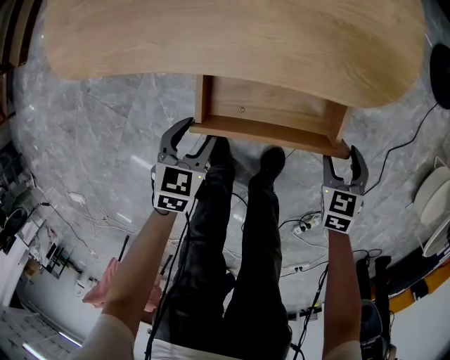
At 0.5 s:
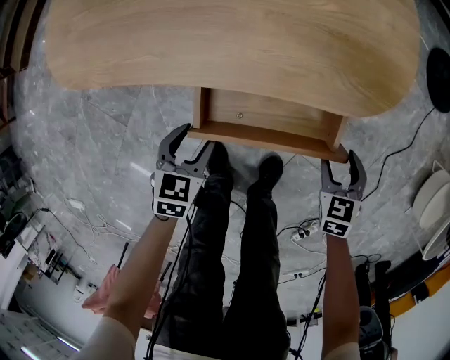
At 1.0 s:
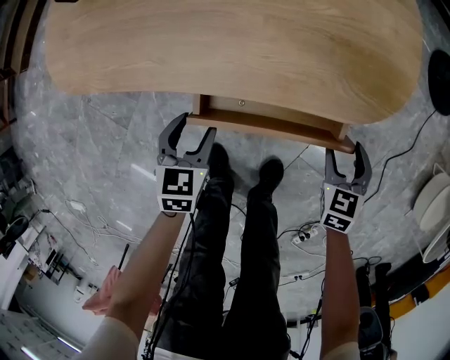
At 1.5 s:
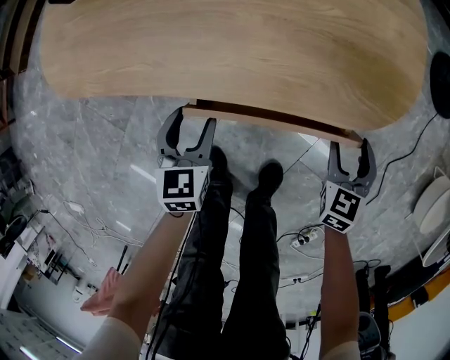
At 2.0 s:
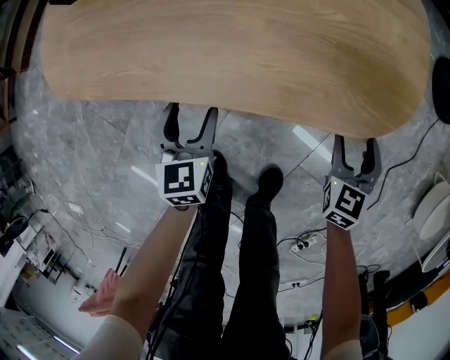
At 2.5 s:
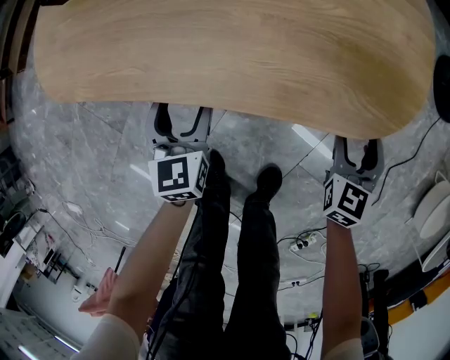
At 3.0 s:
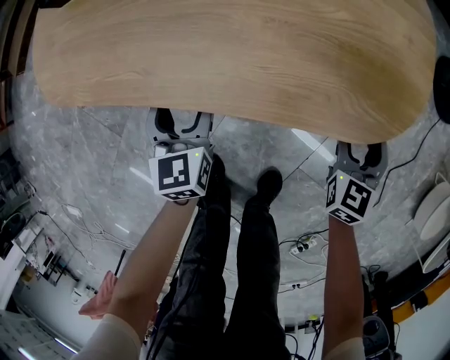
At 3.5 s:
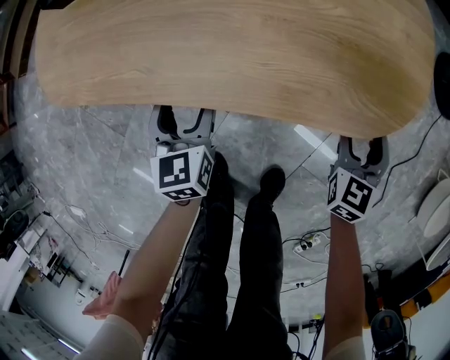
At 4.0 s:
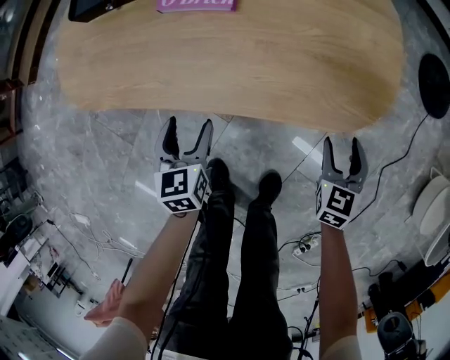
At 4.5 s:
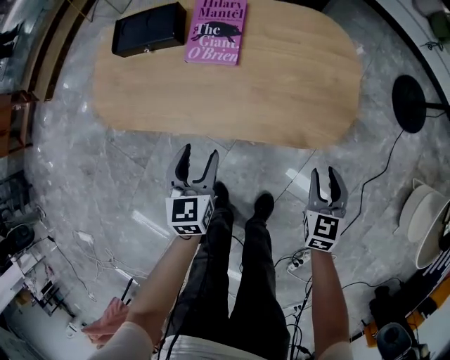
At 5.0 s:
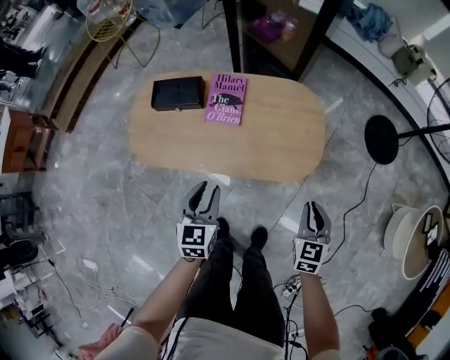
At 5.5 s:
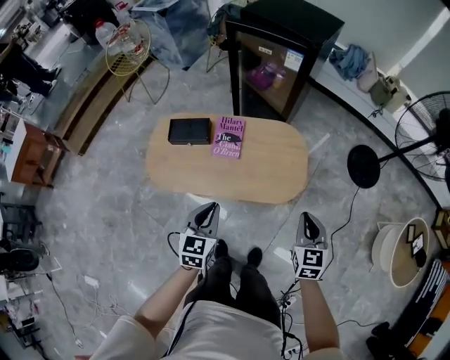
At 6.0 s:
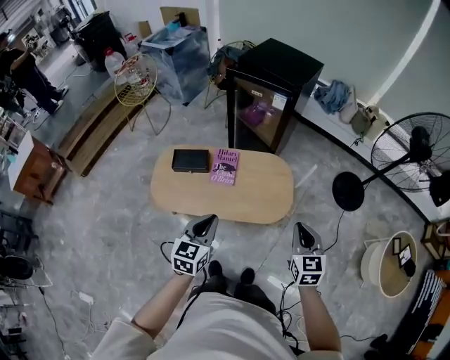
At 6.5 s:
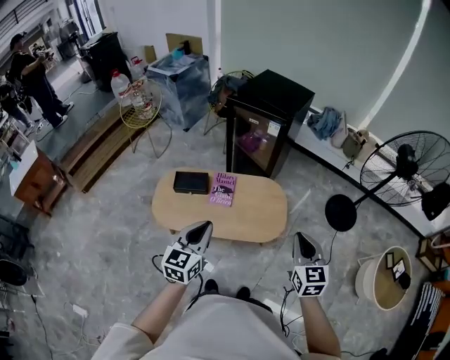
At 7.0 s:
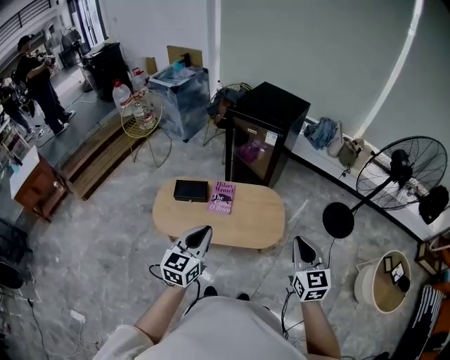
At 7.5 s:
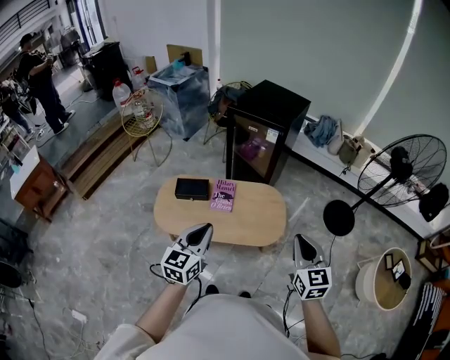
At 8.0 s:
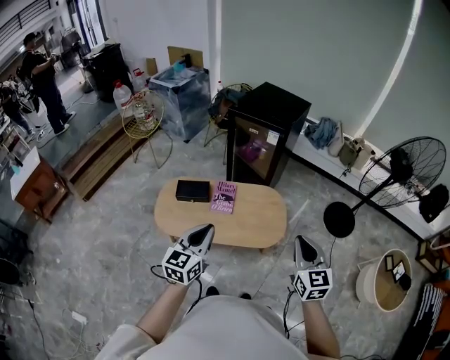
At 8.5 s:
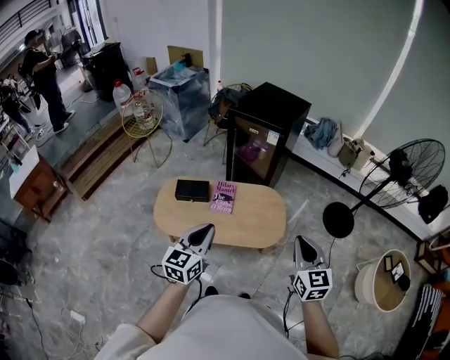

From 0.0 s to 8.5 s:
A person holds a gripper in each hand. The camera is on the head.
From 0.0 s to 2.0 s: Both grippers travel together forward, roughly 10 cm. The left gripper turns by some 30 degrees; the right gripper swivels about 20 degrees.
From 2.0 s to 4.0 s: There are only small adjustments of the grippers.
From 4.0 s to 6.5 s: The grippers both shift upward by some 70 cm. The left gripper turns by about 40 degrees, and closes its fingers, while the right gripper turns by roughly 30 degrees, and closes up.
From 6.5 s to 8.5 s: The right gripper moves some 5 cm.

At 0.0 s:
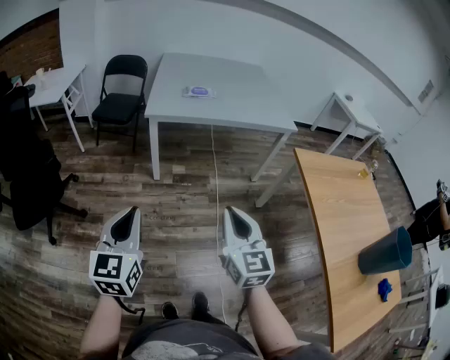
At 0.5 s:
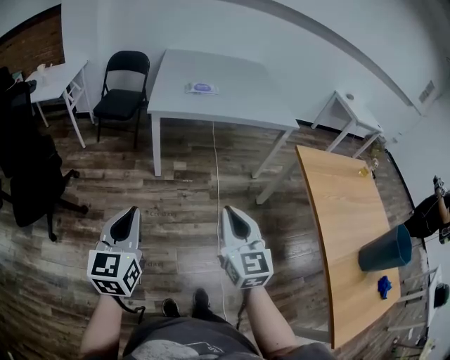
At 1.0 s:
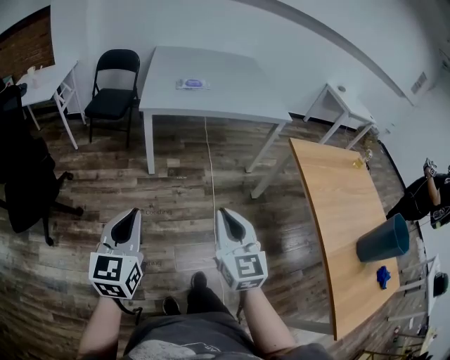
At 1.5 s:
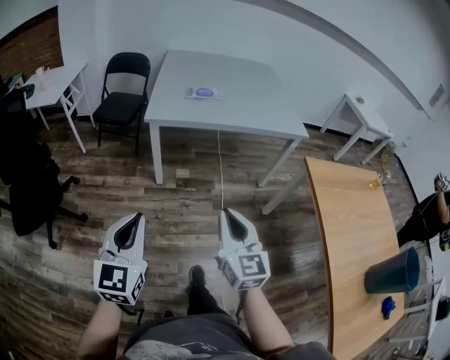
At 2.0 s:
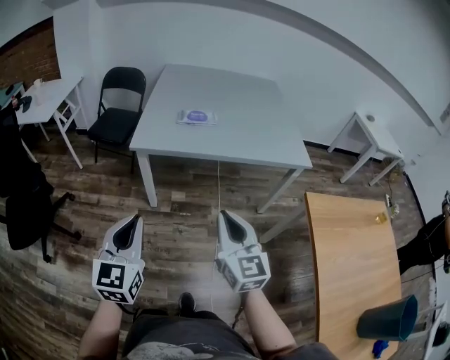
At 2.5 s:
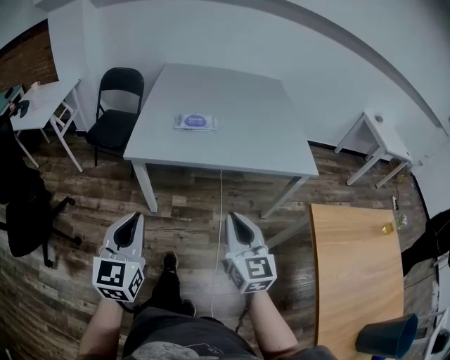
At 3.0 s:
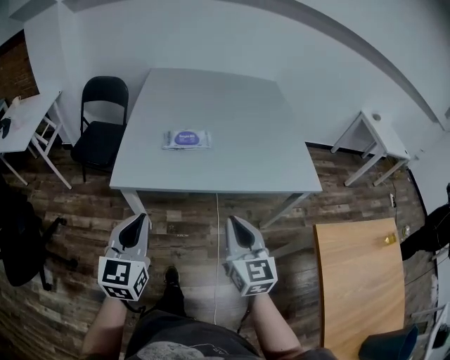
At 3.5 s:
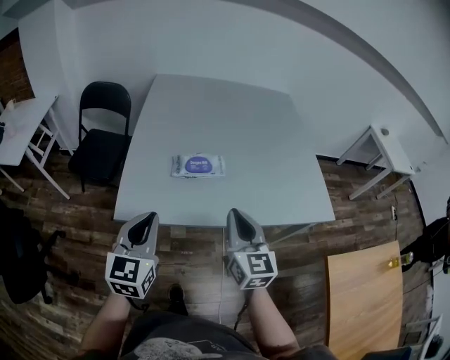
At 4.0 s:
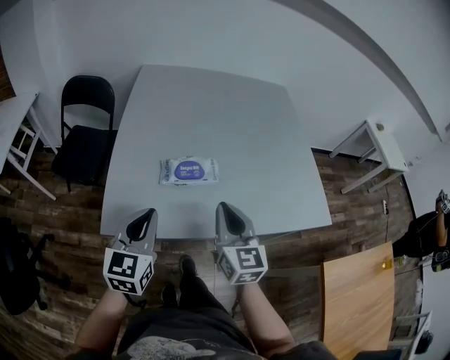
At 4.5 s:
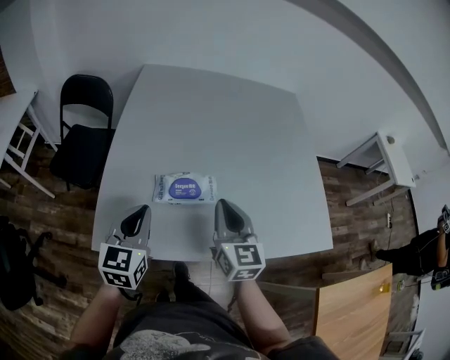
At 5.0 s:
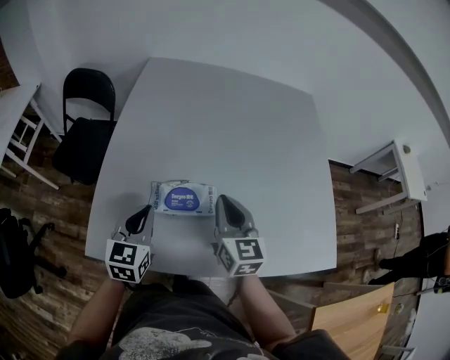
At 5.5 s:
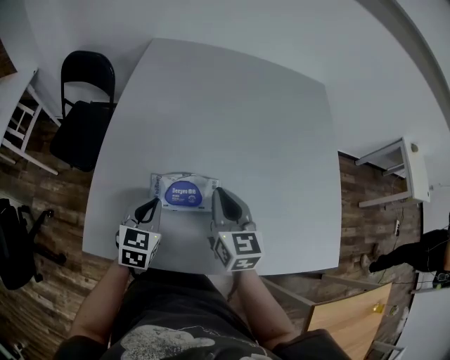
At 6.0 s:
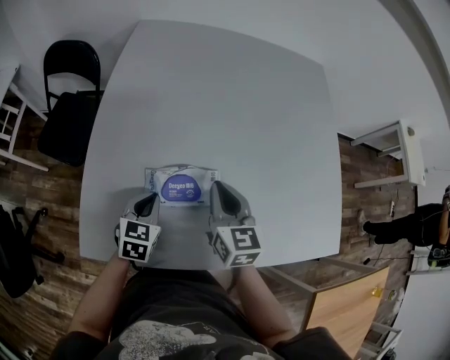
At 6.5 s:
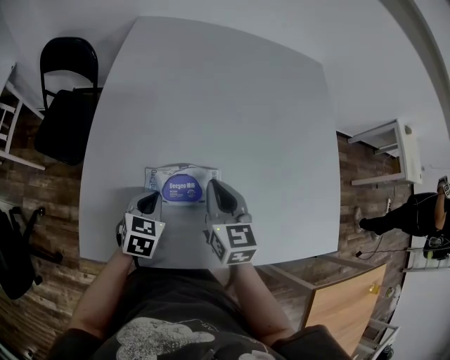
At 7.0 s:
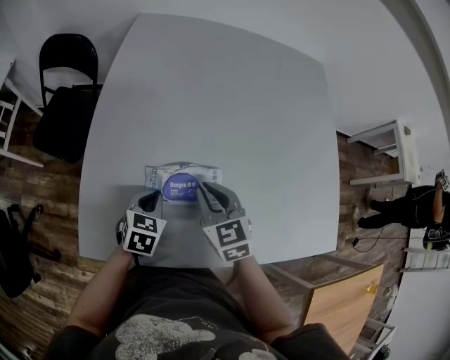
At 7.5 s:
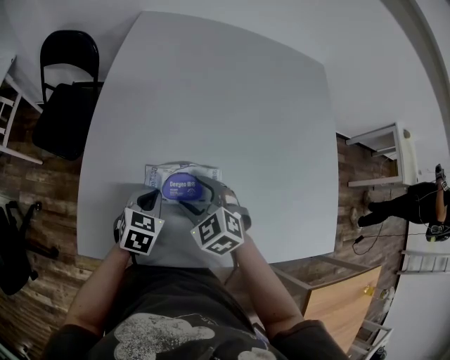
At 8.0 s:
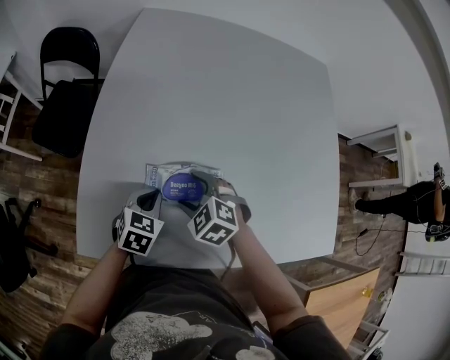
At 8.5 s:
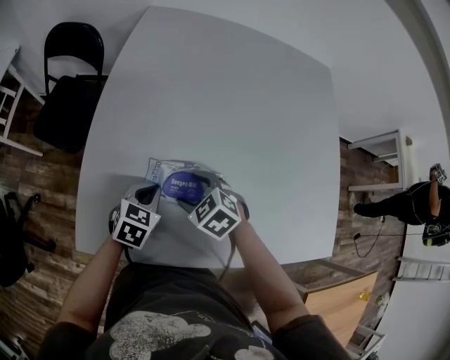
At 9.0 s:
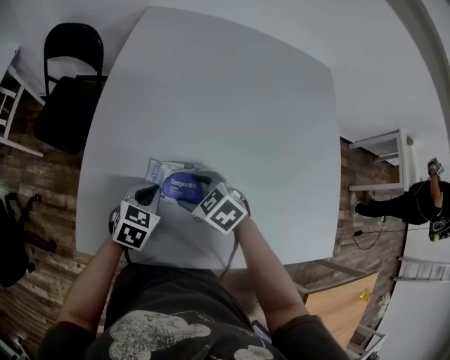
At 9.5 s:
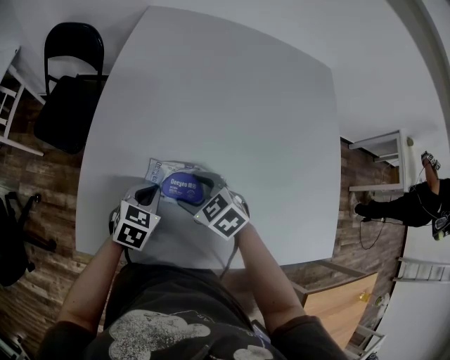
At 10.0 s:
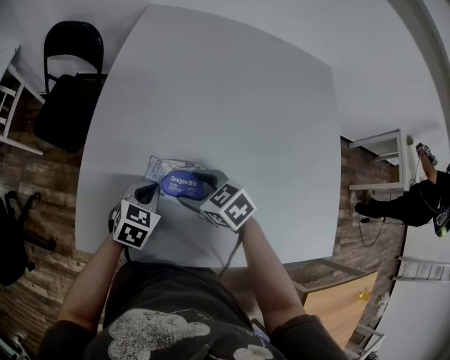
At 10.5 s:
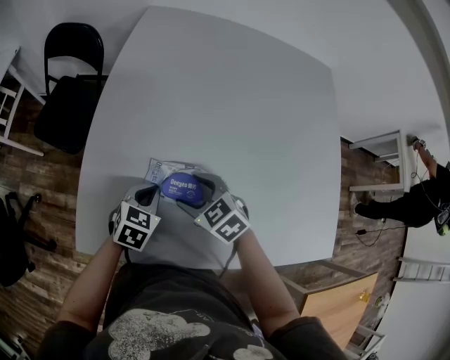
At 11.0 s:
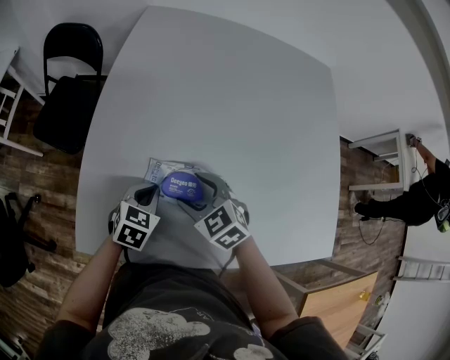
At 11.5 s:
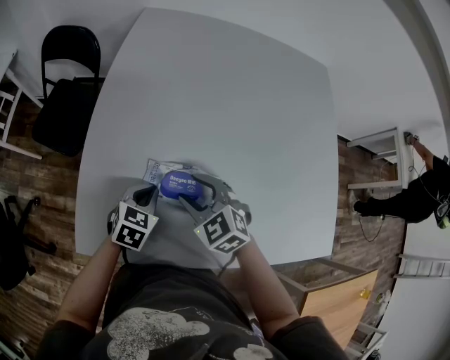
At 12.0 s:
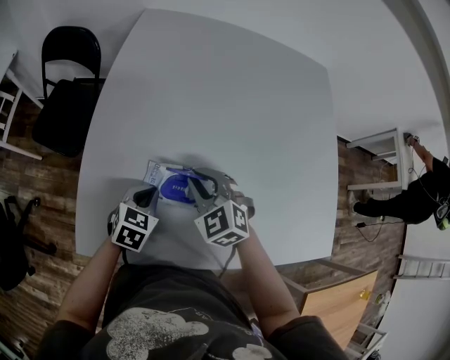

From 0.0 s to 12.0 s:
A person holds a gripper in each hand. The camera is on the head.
From 0.0 s to 2.0 s: Both grippers travel together forward, approximately 20 cm.
From 2.0 s to 4.0 s: Both grippers are carried forward, about 40 cm.
From 4.0 s to 6.0 s: The right gripper goes approximately 20 cm forward and downward. Meanwhile the left gripper heads downward and forward, covering roughly 25 cm, and swivels some 30 degrees.
From 6.0 s to 8.0 s: The right gripper travels downward and to the left by about 15 cm, tilts its fingers roughly 40 degrees downward, and opens.
From 8.0 s to 10.0 s: The right gripper changes its angle by about 30 degrees.
From 10.0 s to 12.0 s: The right gripper ends up about 5 cm from where it was, rotates about 40 degrees, and closes up.

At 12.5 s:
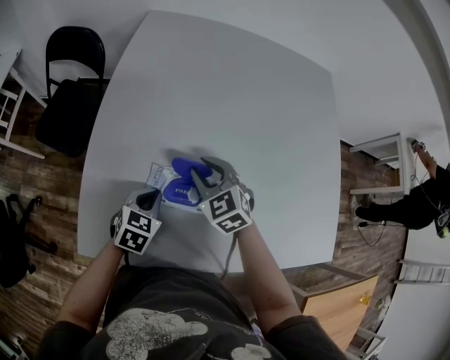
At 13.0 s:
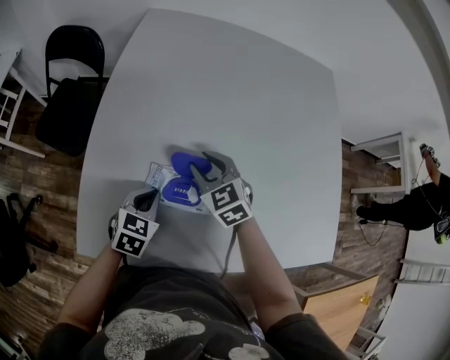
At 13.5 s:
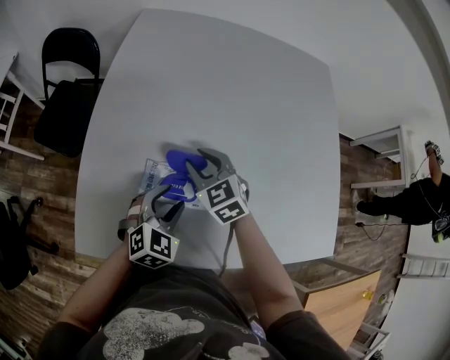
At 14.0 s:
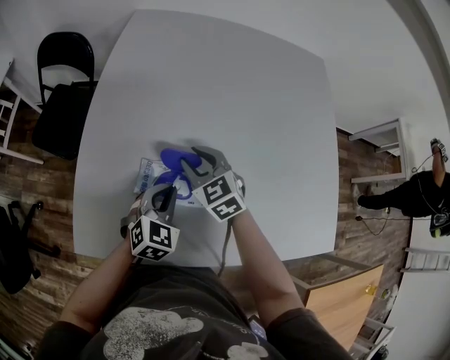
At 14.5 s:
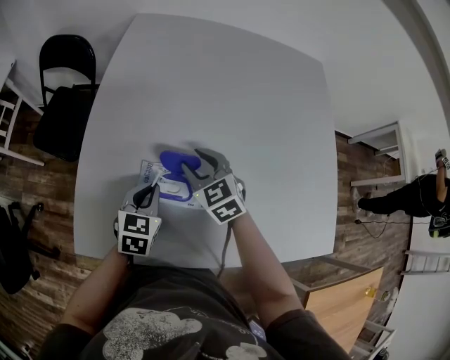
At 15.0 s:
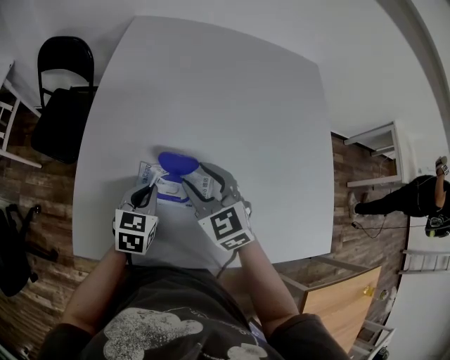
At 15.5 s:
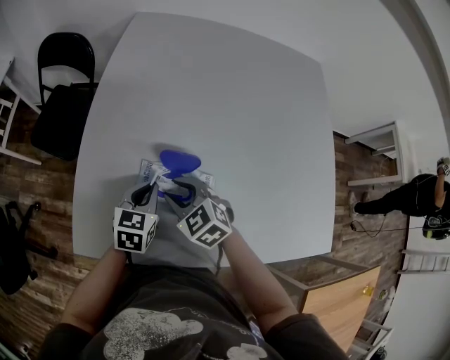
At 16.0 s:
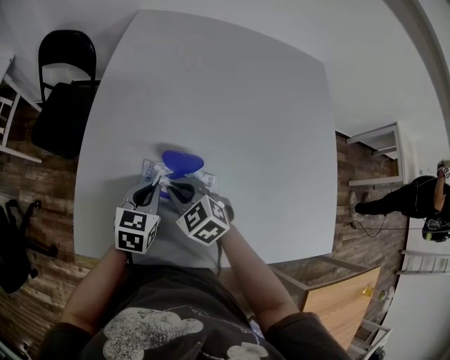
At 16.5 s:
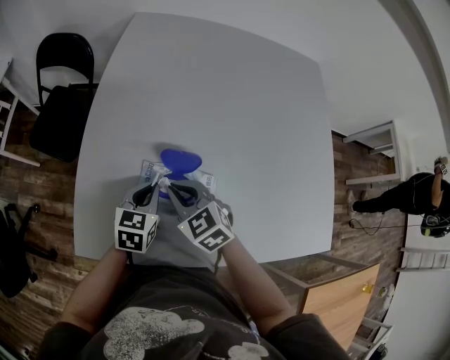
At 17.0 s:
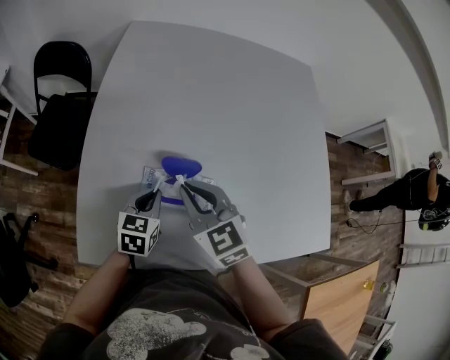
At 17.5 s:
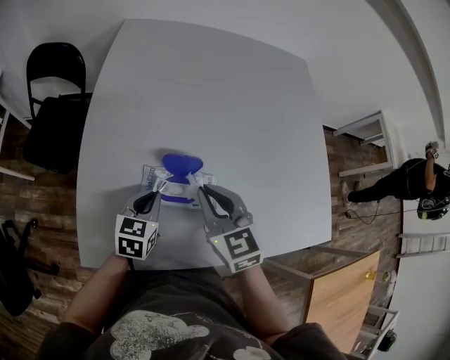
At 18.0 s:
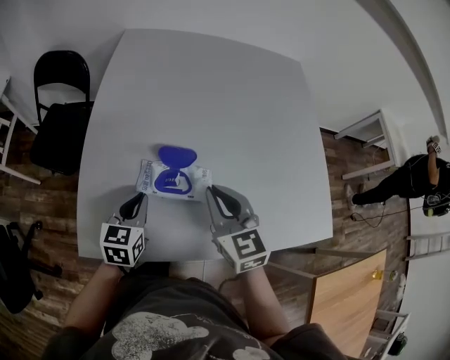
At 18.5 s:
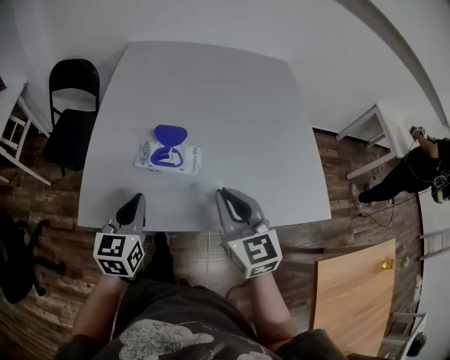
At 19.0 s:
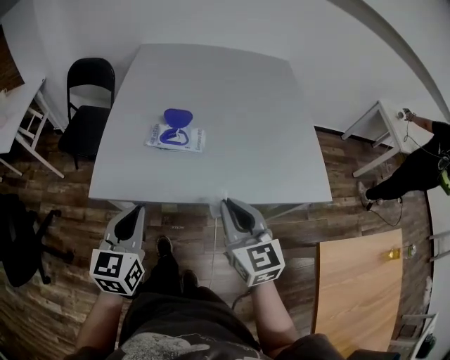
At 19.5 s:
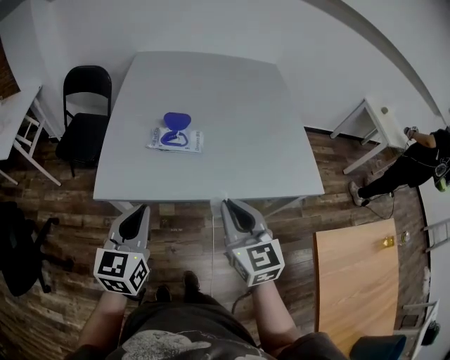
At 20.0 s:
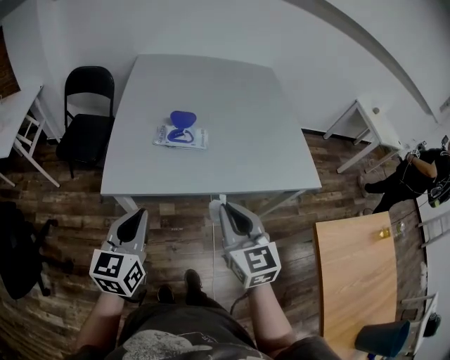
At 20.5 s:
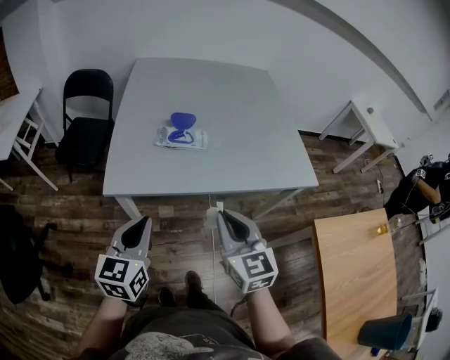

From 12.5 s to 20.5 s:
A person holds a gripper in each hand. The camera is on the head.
From 12.5 s to 14.5 s: The left gripper opens and closes again.
From 14.5 s to 16.5 s: The right gripper heads backward and to the left, covering about 10 cm, reaches some 5 cm upward, then returns, and closes.
From 16.5 s to 18.5 s: The left gripper shifts roughly 20 cm backward and upward. Meanwhile the right gripper heads backward, upward and to the right, covering approximately 25 cm, and rotates approximately 40 degrees.
From 18.5 s to 20.5 s: Both grippers move backward, about 20 cm.
